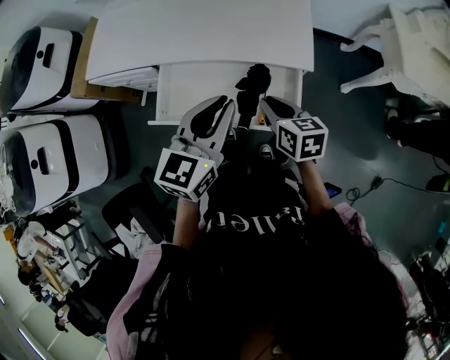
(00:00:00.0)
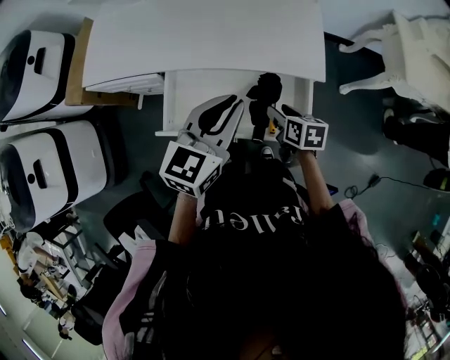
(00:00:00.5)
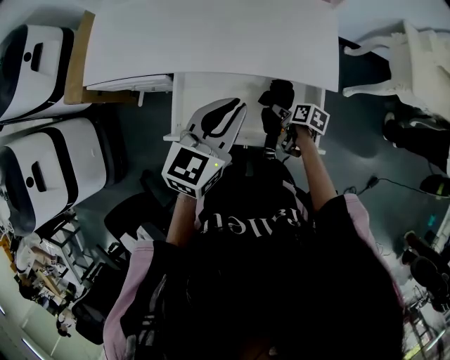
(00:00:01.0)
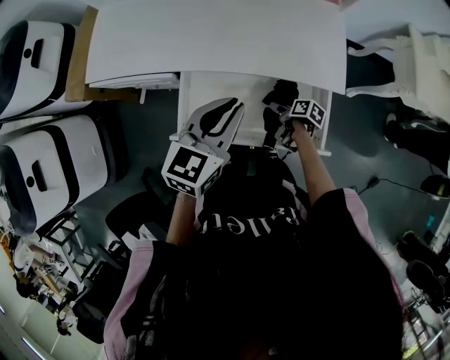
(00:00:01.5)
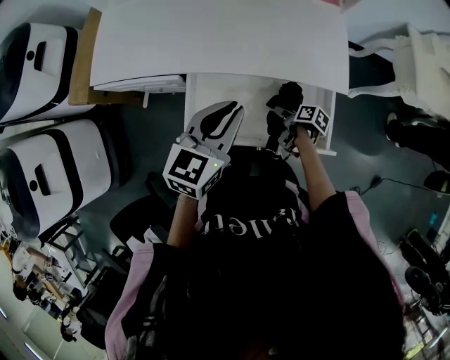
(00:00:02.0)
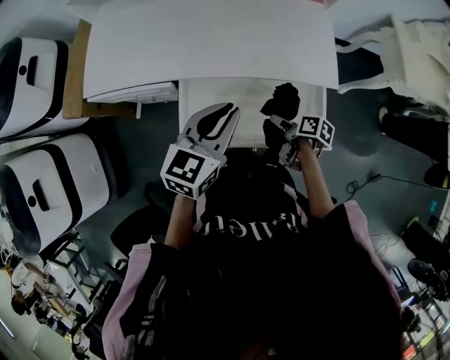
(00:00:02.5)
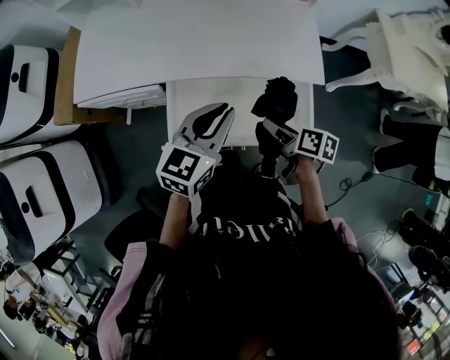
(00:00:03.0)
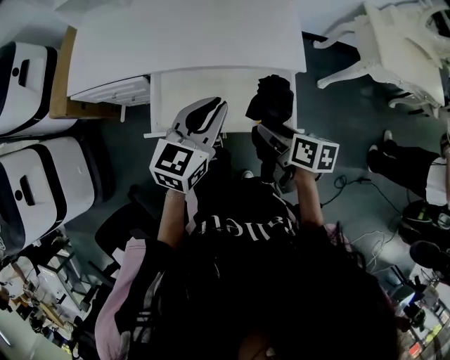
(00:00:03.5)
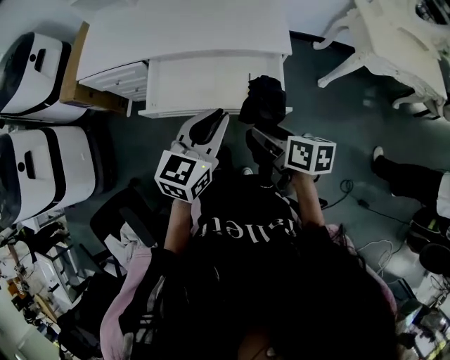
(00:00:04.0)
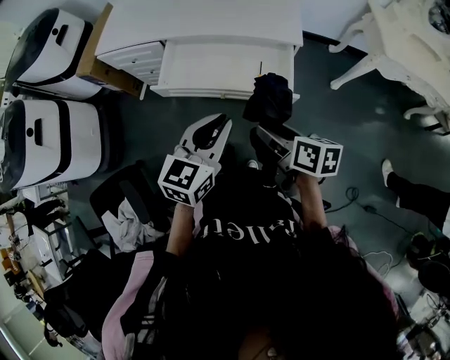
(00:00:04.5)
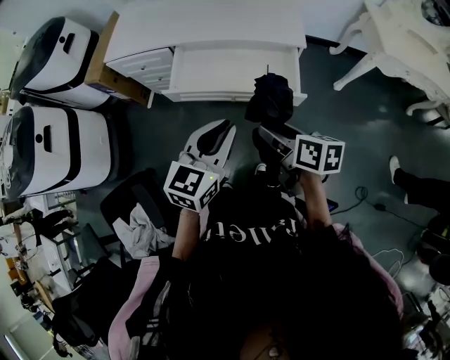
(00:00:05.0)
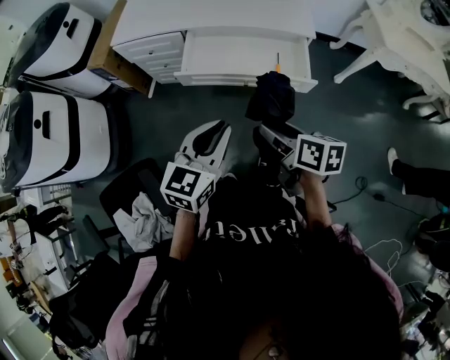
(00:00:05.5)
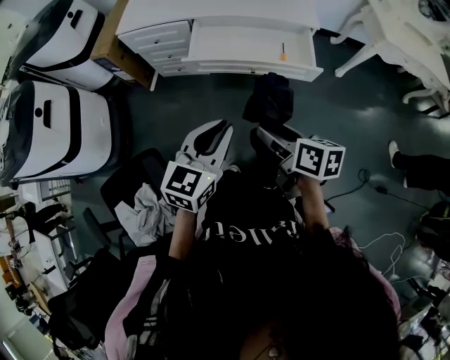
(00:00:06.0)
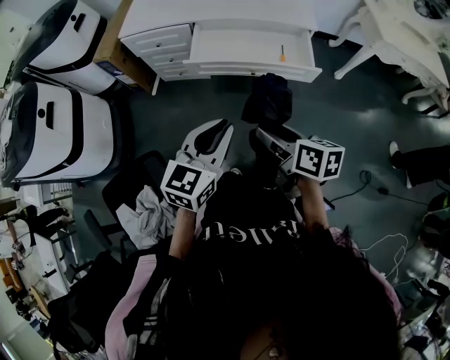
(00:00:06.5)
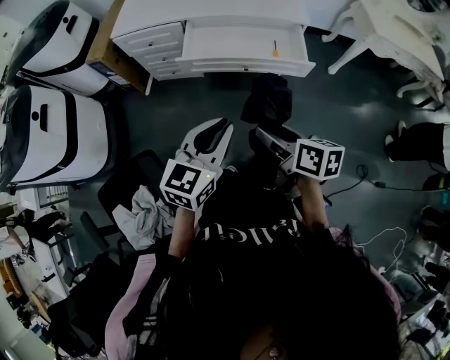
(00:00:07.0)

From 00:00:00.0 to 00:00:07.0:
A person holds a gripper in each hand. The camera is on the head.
From 00:00:00.0 to 00:00:02.0: The right gripper travels downward by approximately 25 cm, rotates around the line of its fingers by about 50 degrees, clockwise from behind, and opens its fingers. The left gripper travels to the left, forward and downward by roughly 20 cm.
From 00:00:02.0 to 00:00:03.5: The right gripper goes roughly 25 cm upward and backward, and swivels some 30 degrees. Meanwhile the left gripper shifts roughly 10 cm to the right and backward.
From 00:00:03.5 to 00:00:05.0: The grippers both shift backward by roughly 25 cm.
From 00:00:05.0 to 00:00:07.0: The two grippers go about 20 cm backward and to the left.

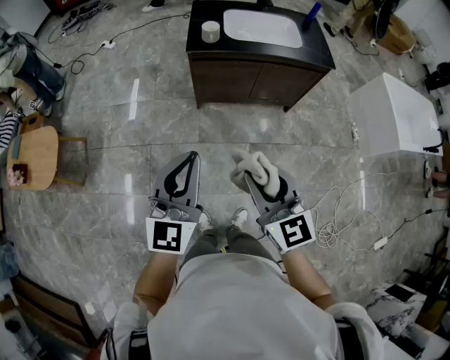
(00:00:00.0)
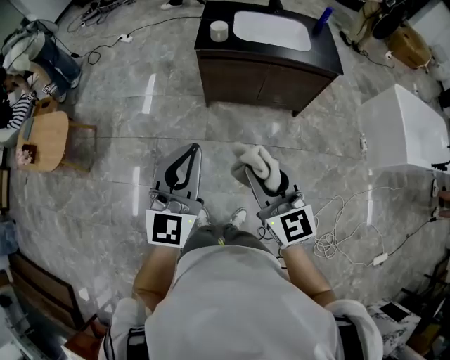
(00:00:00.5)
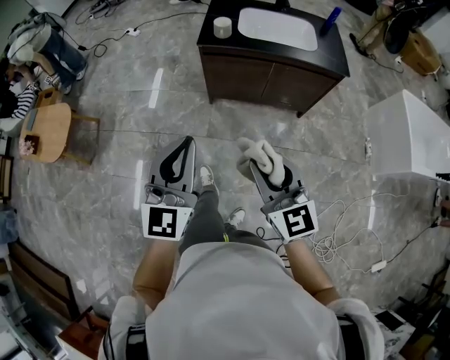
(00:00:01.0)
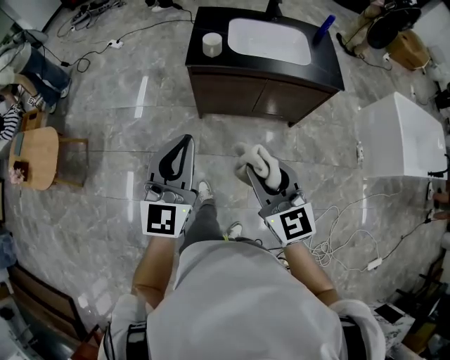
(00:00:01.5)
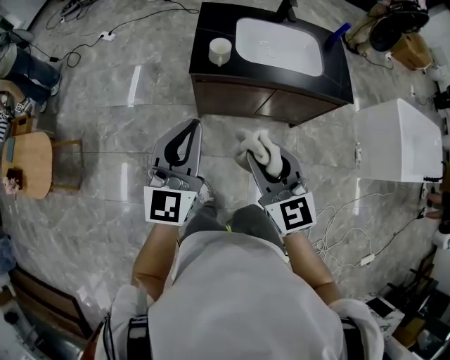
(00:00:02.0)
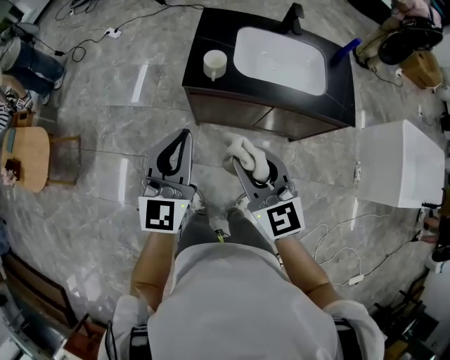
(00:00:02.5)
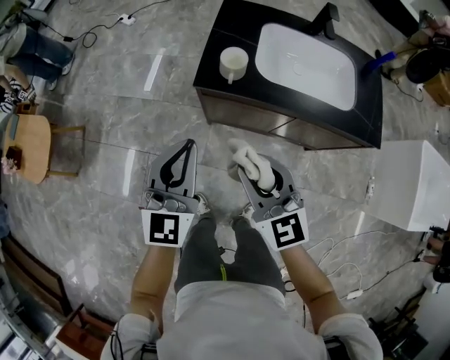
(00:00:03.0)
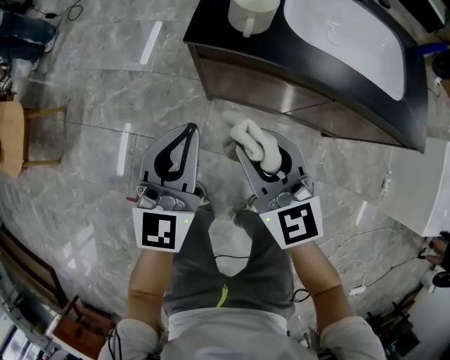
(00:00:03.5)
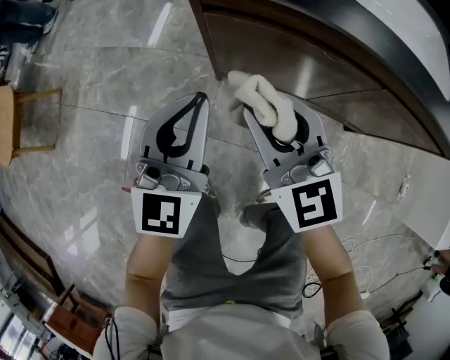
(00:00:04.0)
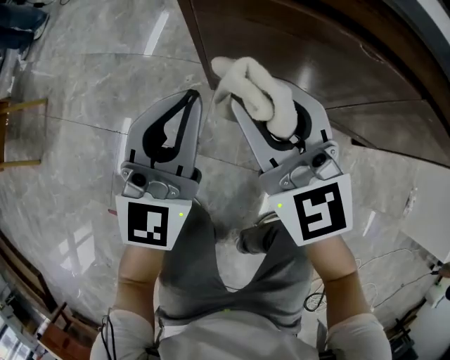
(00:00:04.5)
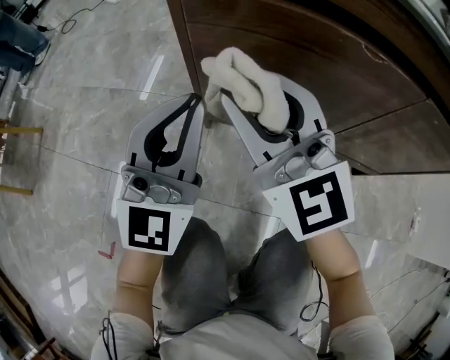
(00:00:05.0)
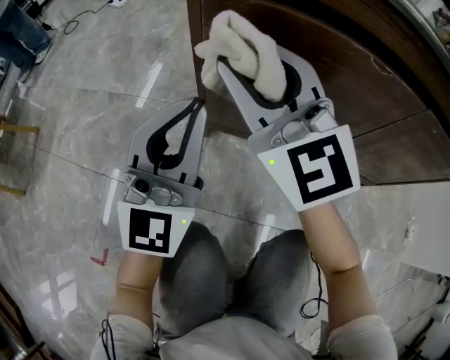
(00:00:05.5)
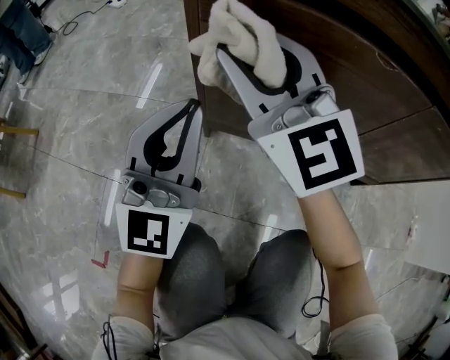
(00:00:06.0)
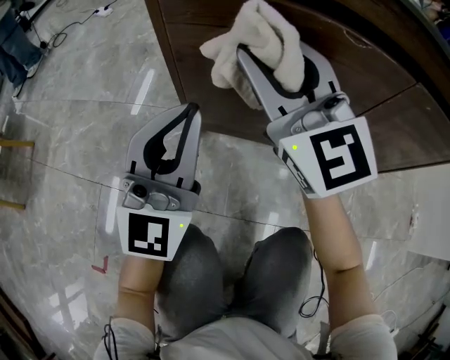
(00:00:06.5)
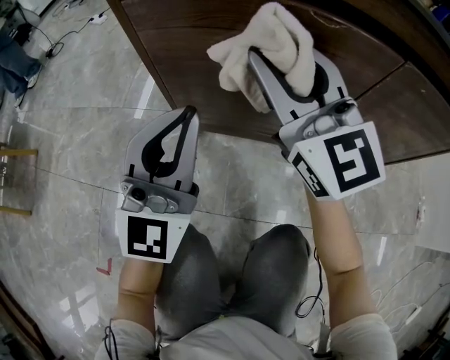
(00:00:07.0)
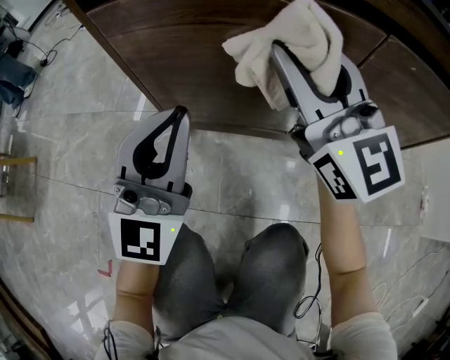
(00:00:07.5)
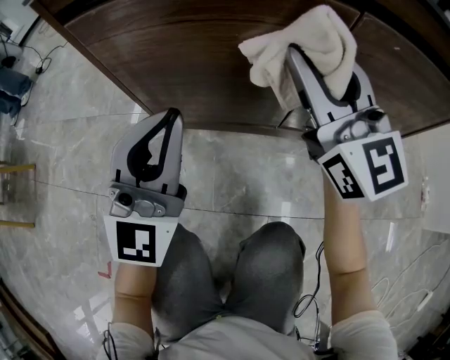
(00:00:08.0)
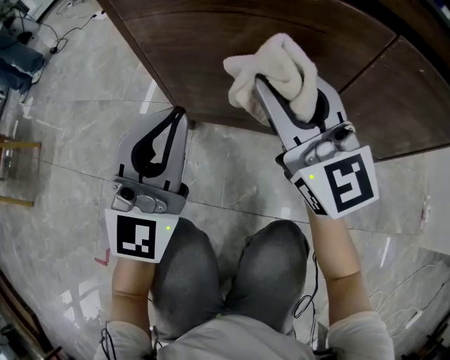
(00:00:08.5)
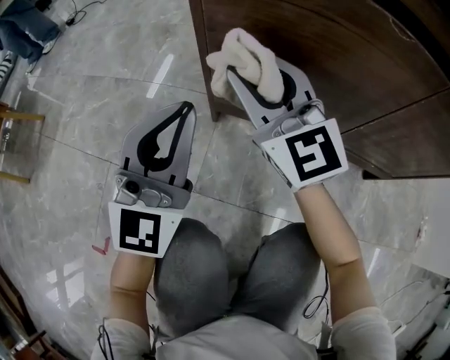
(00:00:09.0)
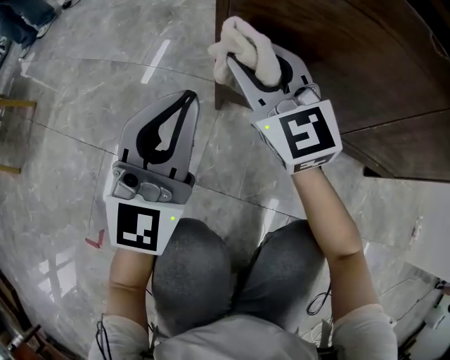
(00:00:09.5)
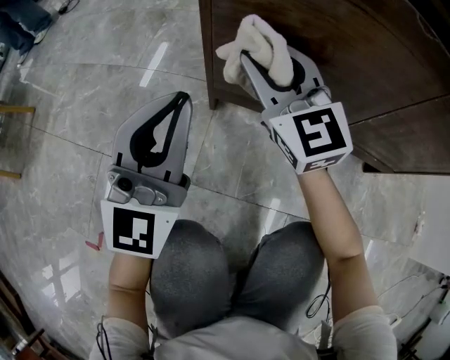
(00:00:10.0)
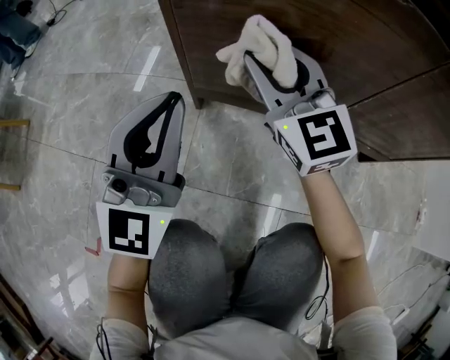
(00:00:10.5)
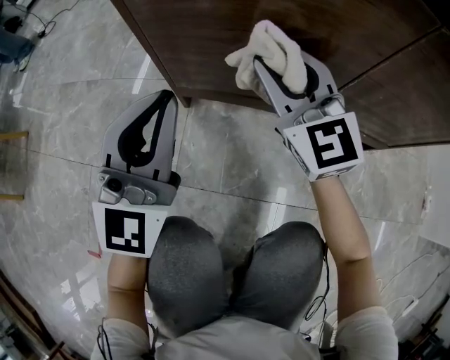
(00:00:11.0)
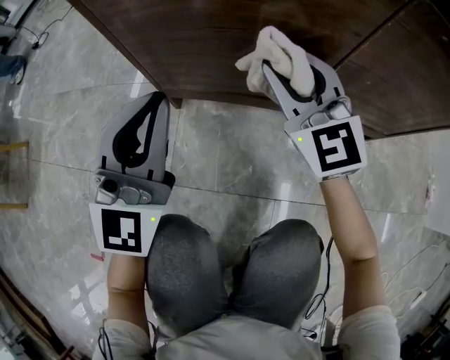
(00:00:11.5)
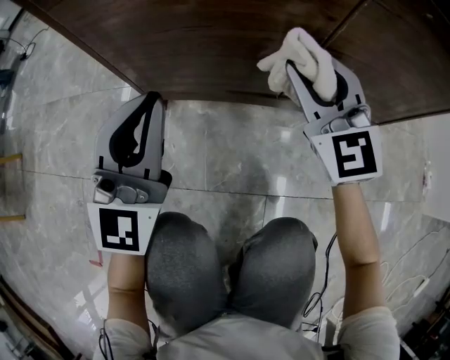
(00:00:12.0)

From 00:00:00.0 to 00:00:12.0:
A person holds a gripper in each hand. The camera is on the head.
From 00:00:00.0 to 00:00:02.0: Both grippers move forward, about 30 cm.
From 00:00:02.0 to 00:00:04.0: The left gripper goes roughly 50 cm downward. Meanwhile the right gripper is displaced downward and forward by approximately 50 cm.
From 00:00:04.0 to 00:00:06.0: The left gripper is displaced downward by roughly 20 cm, while the right gripper goes some 15 cm downward and forward, and turns by some 20 degrees.
From 00:00:06.0 to 00:00:08.0: The left gripper travels to the right by some 15 cm; the right gripper is displaced to the right by about 30 cm, and swivels approximately 20 degrees.
From 00:00:08.0 to 00:00:10.0: The right gripper goes approximately 30 cm to the left and downward, and turns by about 20 degrees. The left gripper is displaced to the left by about 20 cm.
From 00:00:10.0 to 00:00:12.0: The left gripper heads to the right, covering approximately 15 cm, while the right gripper travels to the right by approximately 30 cm.

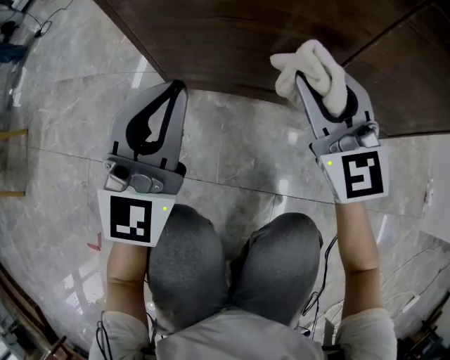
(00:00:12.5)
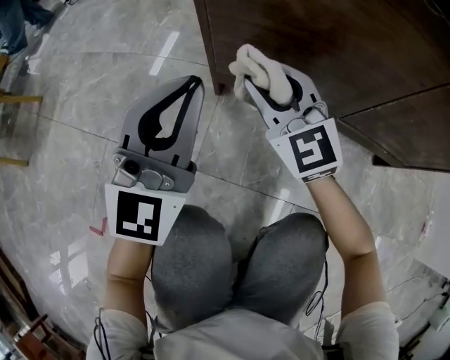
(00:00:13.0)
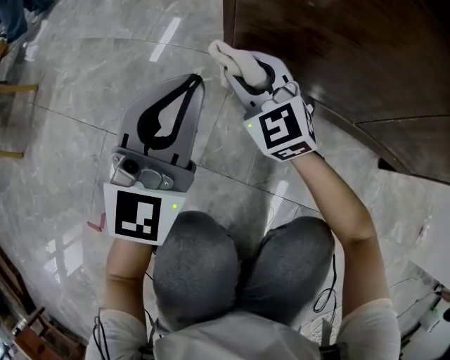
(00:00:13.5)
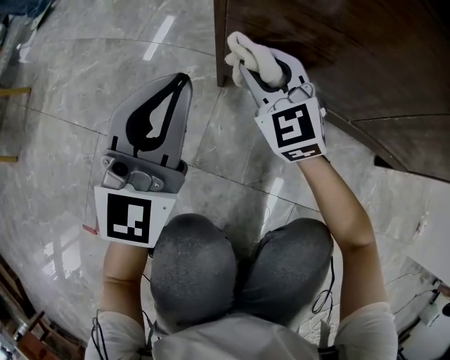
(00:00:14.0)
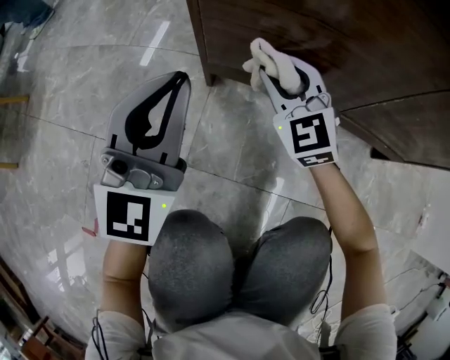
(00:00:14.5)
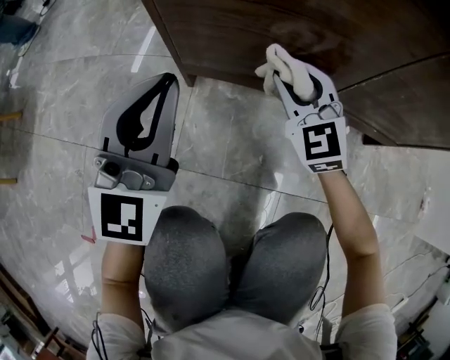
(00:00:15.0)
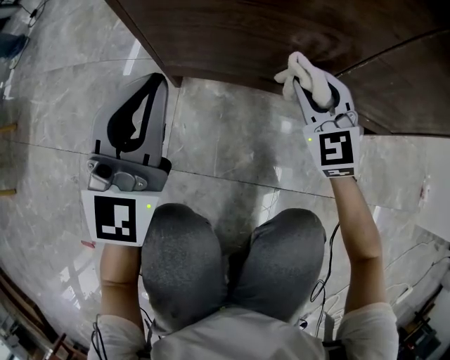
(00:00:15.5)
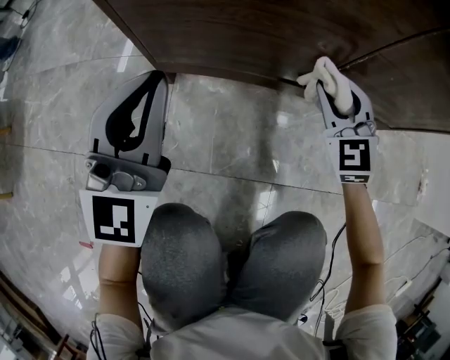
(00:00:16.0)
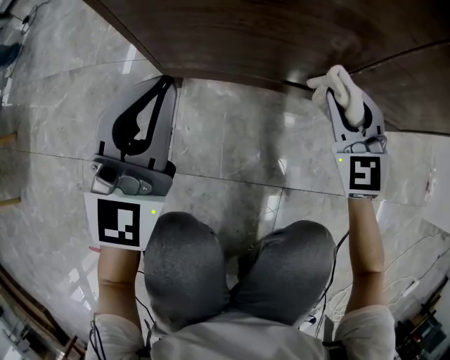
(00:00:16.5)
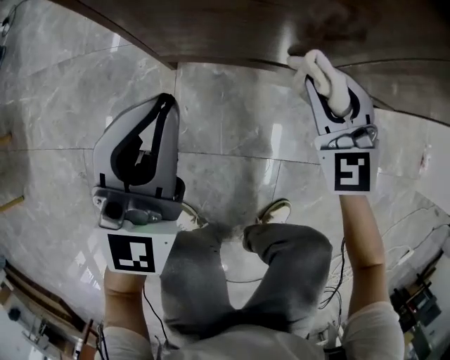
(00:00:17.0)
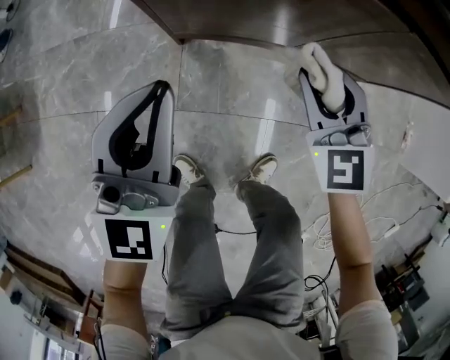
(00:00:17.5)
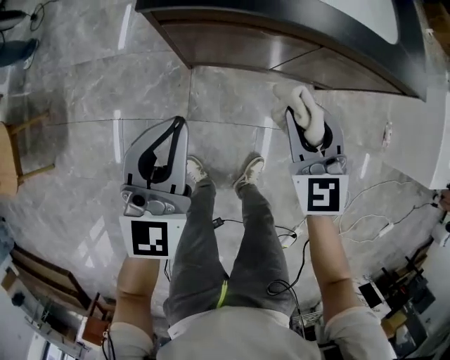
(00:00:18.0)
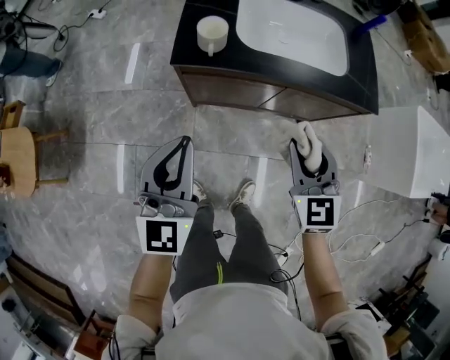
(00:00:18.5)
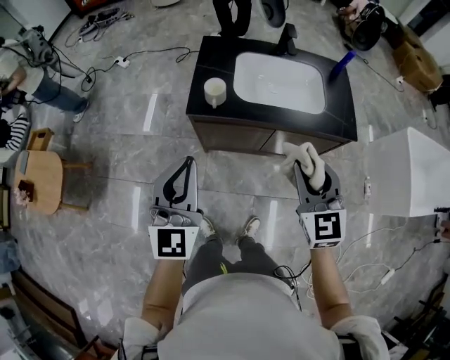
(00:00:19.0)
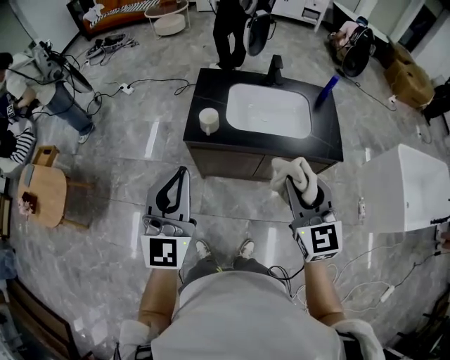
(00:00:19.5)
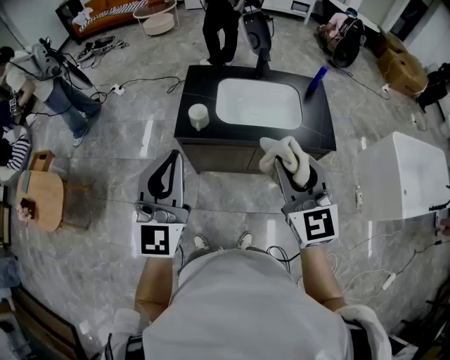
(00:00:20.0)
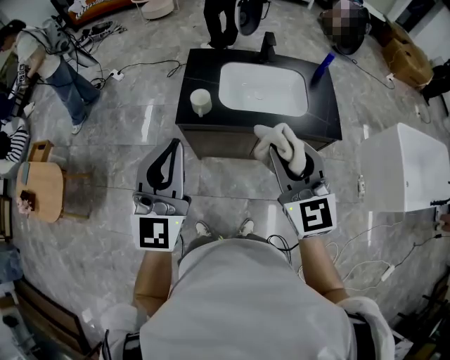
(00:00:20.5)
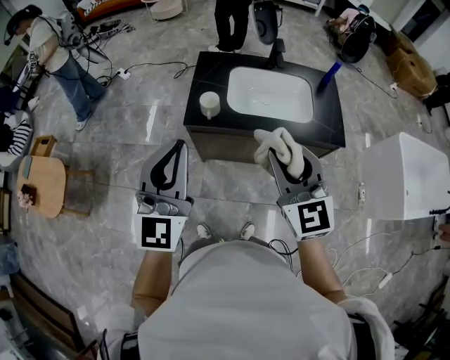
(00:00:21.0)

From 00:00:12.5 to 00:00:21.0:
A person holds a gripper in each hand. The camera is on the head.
From 00:00:12.5 to 00:00:14.5: The left gripper travels to the left by approximately 15 cm. Meanwhile the right gripper moves to the left, downward and forward, roughly 25 cm.
From 00:00:14.5 to 00:00:16.5: The right gripper heads to the right, covering roughly 25 cm. The left gripper heads to the right, covering approximately 10 cm.
From 00:00:16.5 to 00:00:19.0: Both grippers travel together upward, approximately 80 cm.
From 00:00:19.0 to 00:00:21.0: Both grippers move upward, roughly 10 cm.
